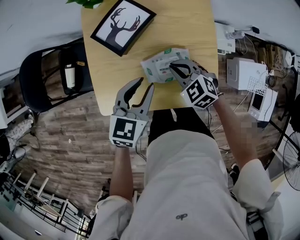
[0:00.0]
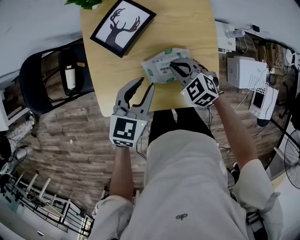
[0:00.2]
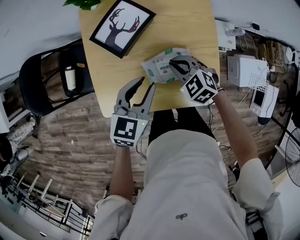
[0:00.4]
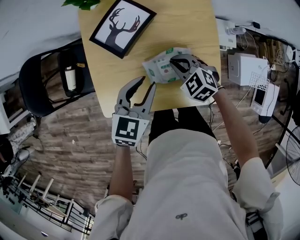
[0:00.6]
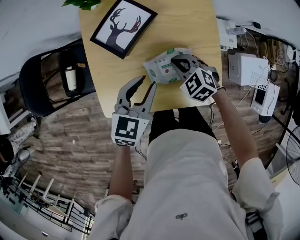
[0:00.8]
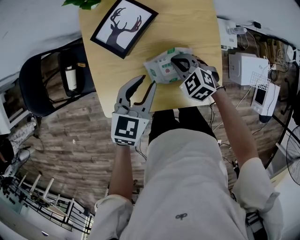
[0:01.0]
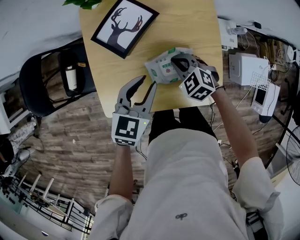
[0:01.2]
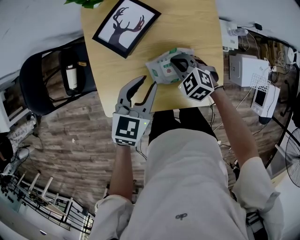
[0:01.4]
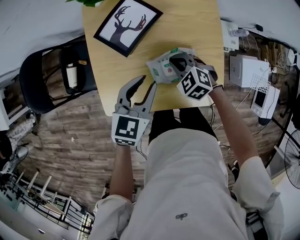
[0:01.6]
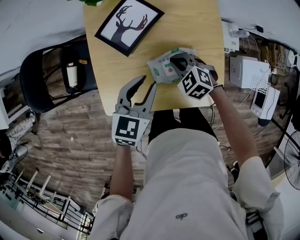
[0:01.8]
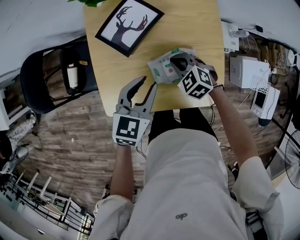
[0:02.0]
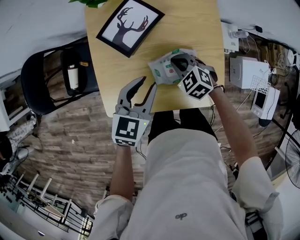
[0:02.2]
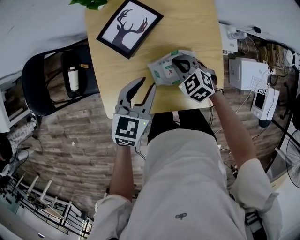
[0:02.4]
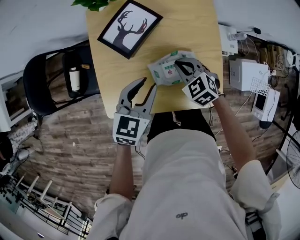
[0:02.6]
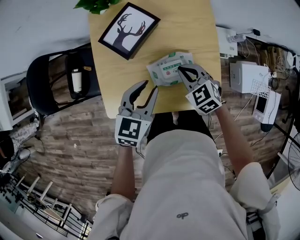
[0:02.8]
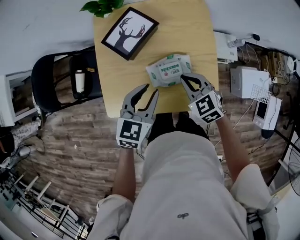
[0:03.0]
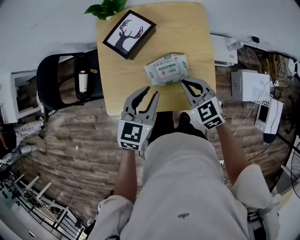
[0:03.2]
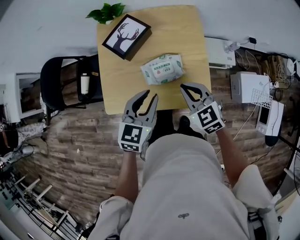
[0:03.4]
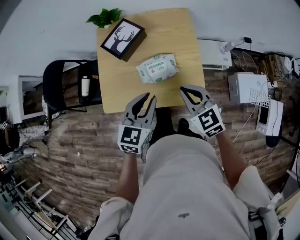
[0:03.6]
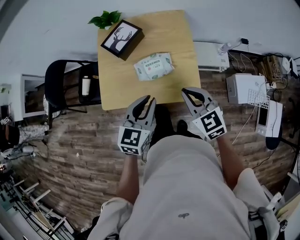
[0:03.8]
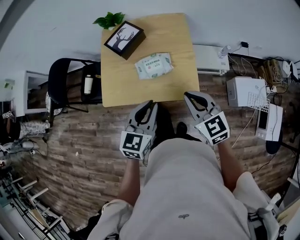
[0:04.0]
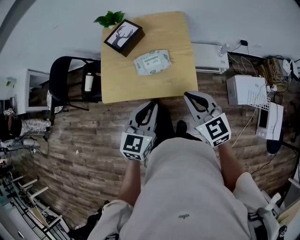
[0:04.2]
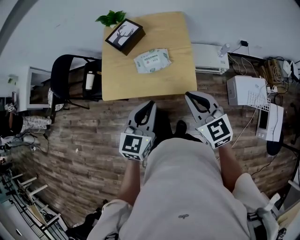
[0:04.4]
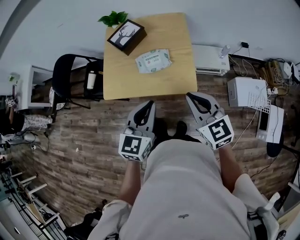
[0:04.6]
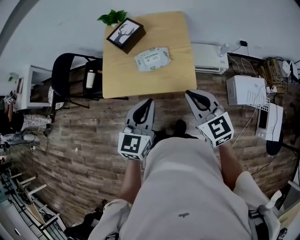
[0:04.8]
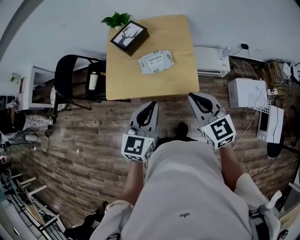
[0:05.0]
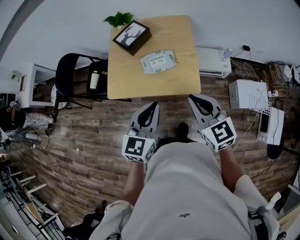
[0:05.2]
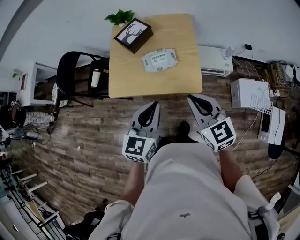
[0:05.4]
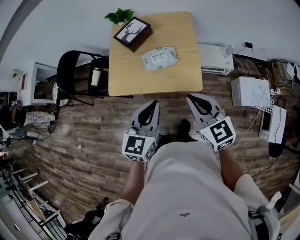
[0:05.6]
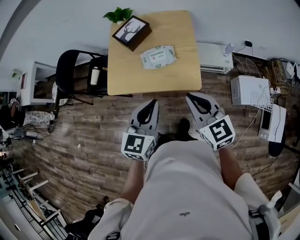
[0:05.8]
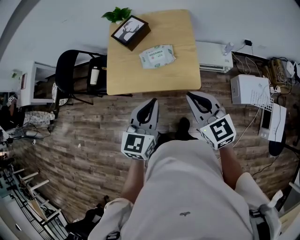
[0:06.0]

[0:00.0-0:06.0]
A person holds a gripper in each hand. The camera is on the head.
0:00.0 to 0:01.6: The right gripper shifts by roughly 5 cm.
0:01.6 to 0:03.0: The right gripper goes some 10 cm upward and backward, and turns by about 20 degrees; the left gripper ends up some 5 cm from where it was.
0:03.0 to 0:04.4: The right gripper moves backward, upward and to the right, some 30 cm, and turns by some 20 degrees. Meanwhile the left gripper travels backward, to the right and upward by some 30 cm, and closes up.
0:04.4 to 0:06.0: The grippers move only a little.

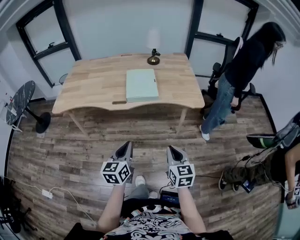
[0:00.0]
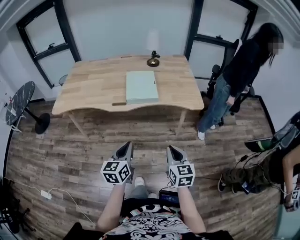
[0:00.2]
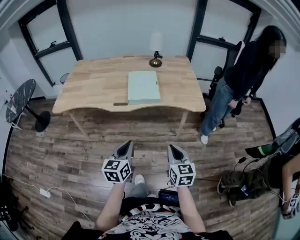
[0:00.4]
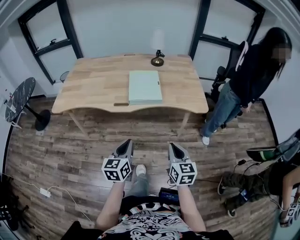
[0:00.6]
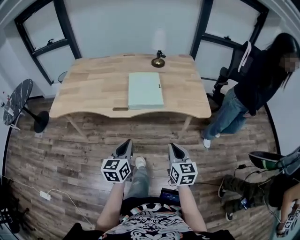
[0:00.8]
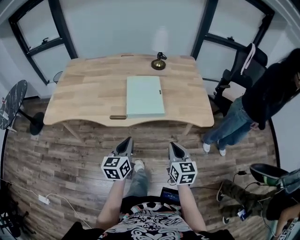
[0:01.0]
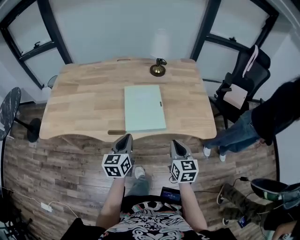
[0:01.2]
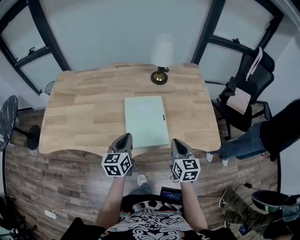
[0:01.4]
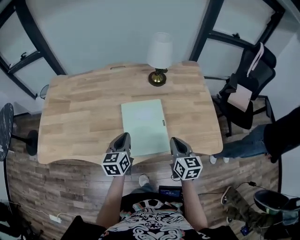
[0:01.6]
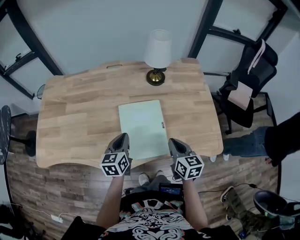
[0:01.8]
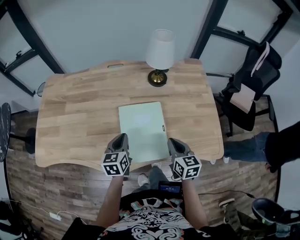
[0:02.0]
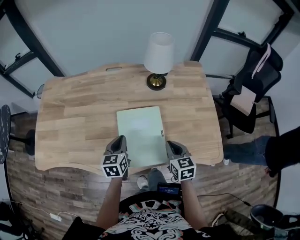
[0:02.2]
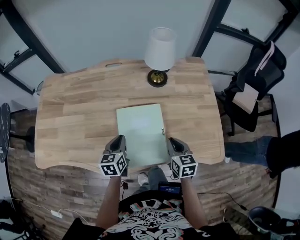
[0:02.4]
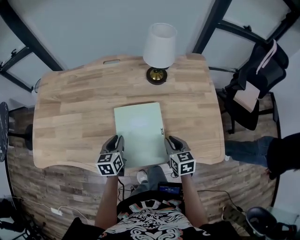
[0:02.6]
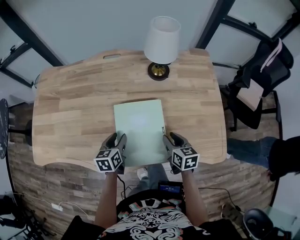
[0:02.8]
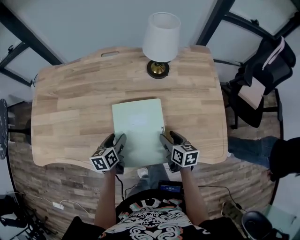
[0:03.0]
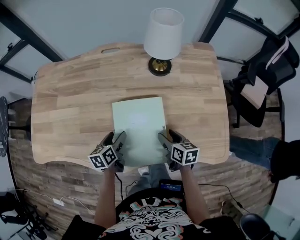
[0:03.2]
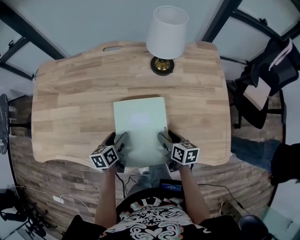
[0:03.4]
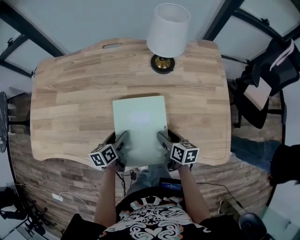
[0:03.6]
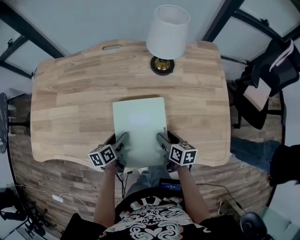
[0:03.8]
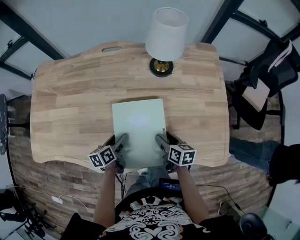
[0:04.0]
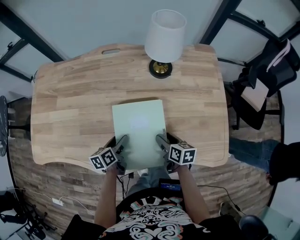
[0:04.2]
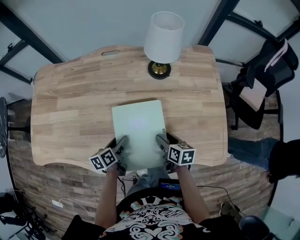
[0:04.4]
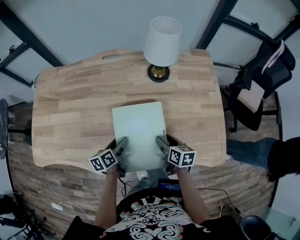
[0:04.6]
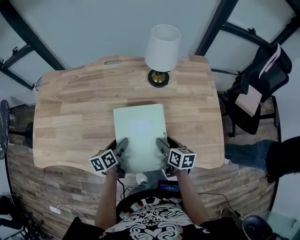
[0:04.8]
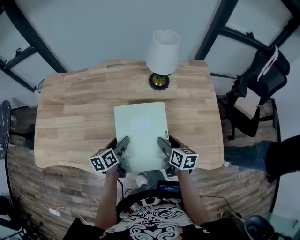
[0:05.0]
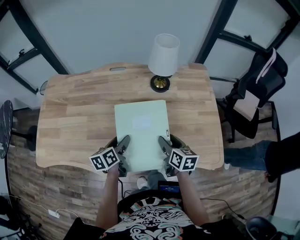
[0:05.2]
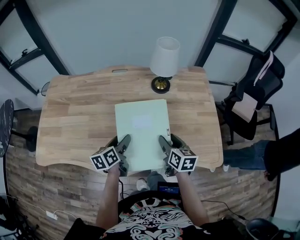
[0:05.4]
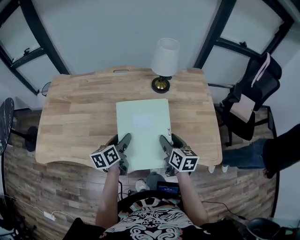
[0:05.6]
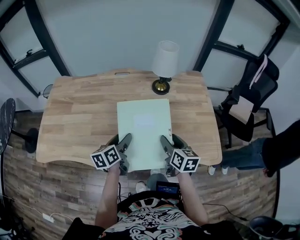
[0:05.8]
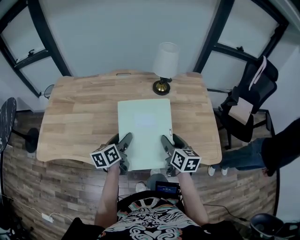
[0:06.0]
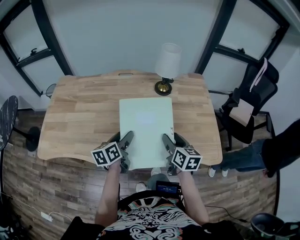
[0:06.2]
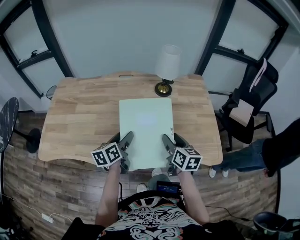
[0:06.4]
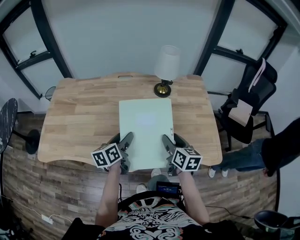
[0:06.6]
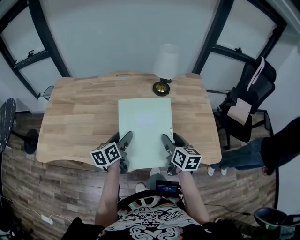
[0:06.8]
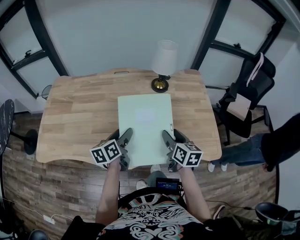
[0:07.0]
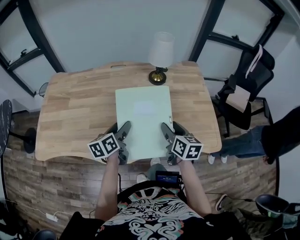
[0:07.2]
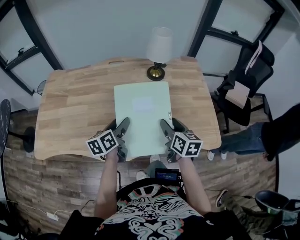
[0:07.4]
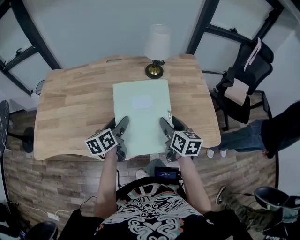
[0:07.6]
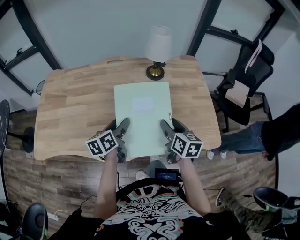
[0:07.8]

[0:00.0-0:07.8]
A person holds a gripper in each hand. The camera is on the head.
0:00.0 to 0:01.6: Both grippers are carried forward, approximately 50 cm.
0:01.6 to 0:03.2: The two grippers go some 15 cm downward and forward. The left gripper turns by approximately 20 degrees, and opens its fingers, while the right gripper rotates roughly 30 degrees, and opens its fingers.
0:03.2 to 0:04.6: The grippers move only a little.
0:04.6 to 0:06.2: Both grippers move upward, some 15 cm. The right gripper rotates about 20 degrees.
0:06.2 to 0:07.8: The grippers make only small movements.

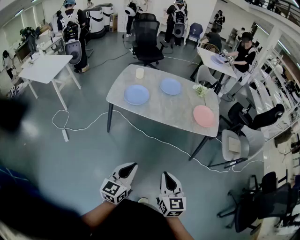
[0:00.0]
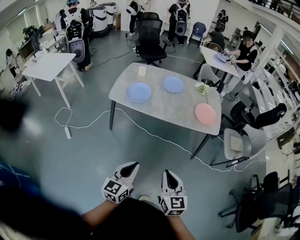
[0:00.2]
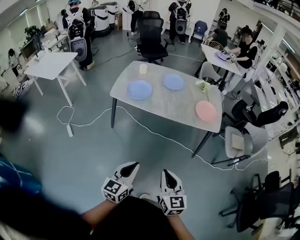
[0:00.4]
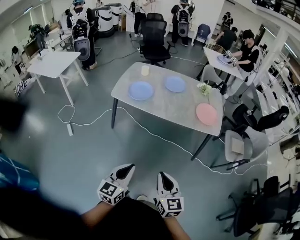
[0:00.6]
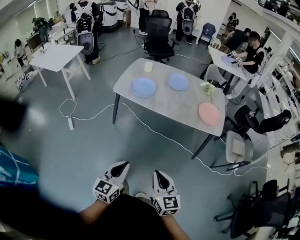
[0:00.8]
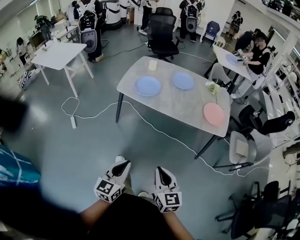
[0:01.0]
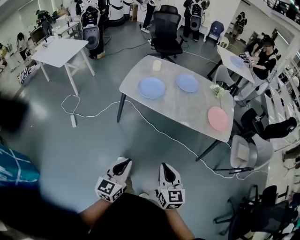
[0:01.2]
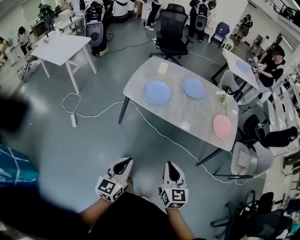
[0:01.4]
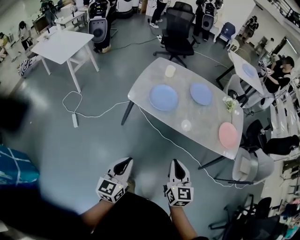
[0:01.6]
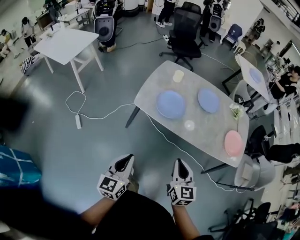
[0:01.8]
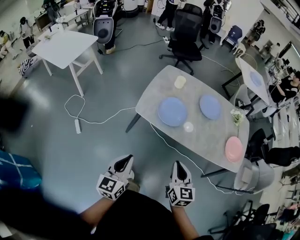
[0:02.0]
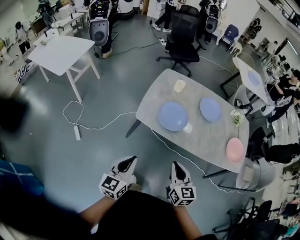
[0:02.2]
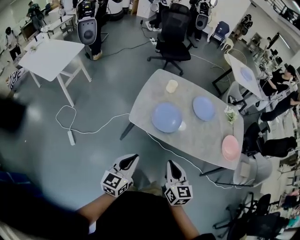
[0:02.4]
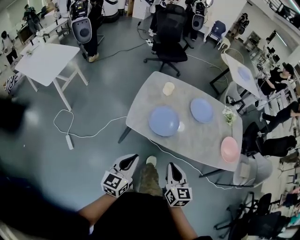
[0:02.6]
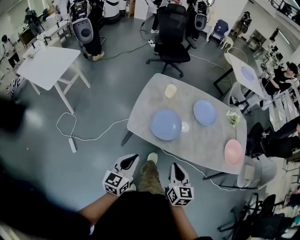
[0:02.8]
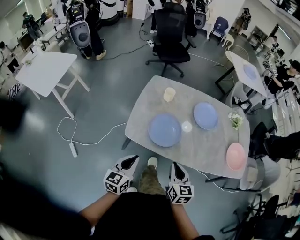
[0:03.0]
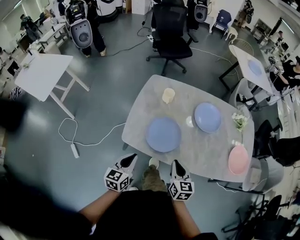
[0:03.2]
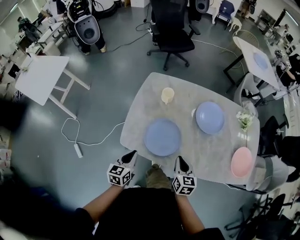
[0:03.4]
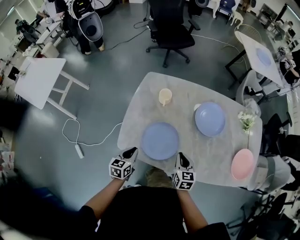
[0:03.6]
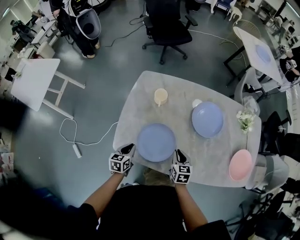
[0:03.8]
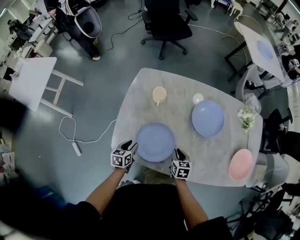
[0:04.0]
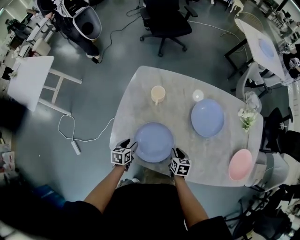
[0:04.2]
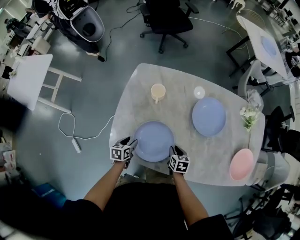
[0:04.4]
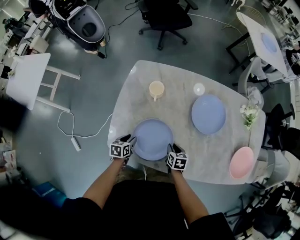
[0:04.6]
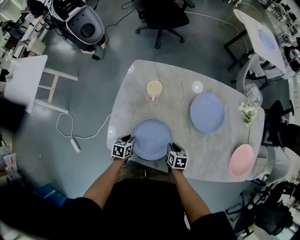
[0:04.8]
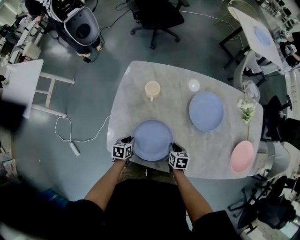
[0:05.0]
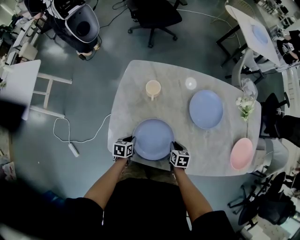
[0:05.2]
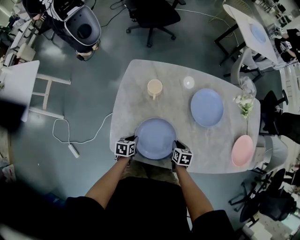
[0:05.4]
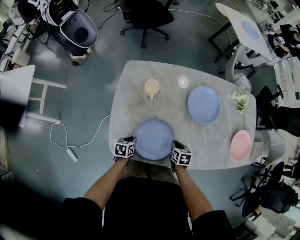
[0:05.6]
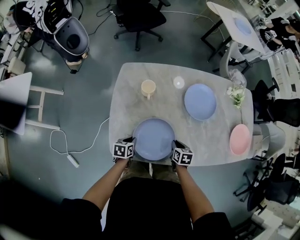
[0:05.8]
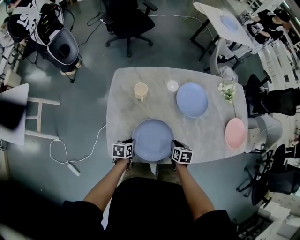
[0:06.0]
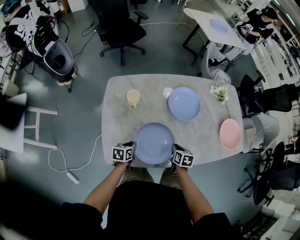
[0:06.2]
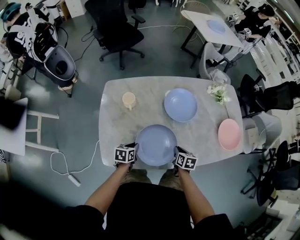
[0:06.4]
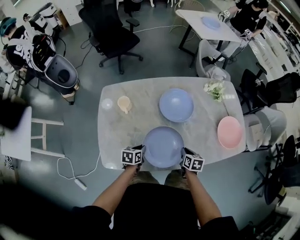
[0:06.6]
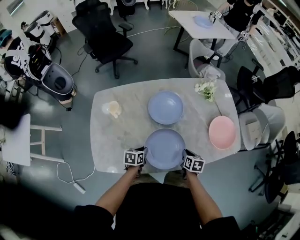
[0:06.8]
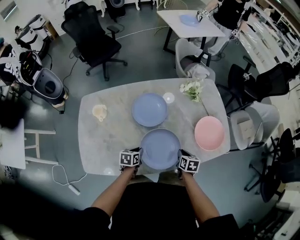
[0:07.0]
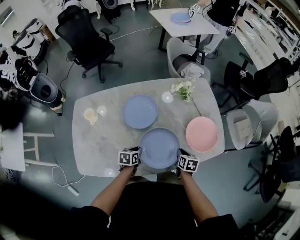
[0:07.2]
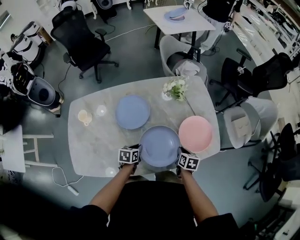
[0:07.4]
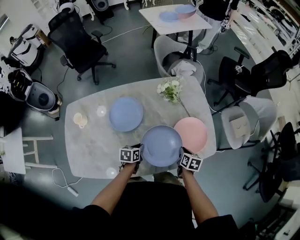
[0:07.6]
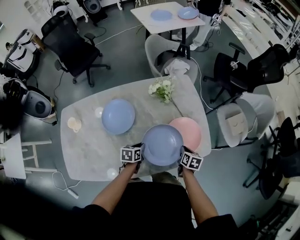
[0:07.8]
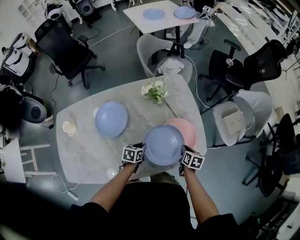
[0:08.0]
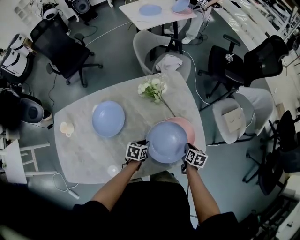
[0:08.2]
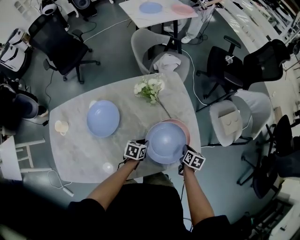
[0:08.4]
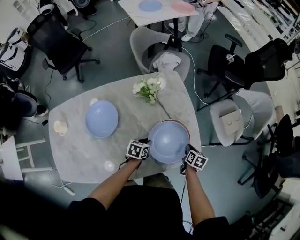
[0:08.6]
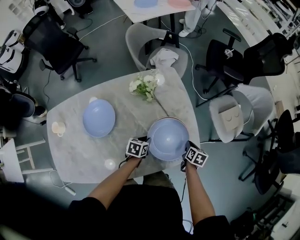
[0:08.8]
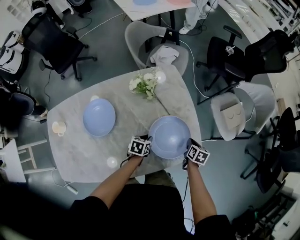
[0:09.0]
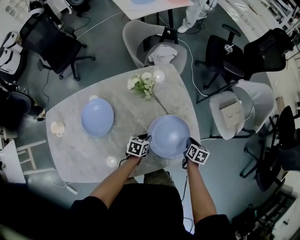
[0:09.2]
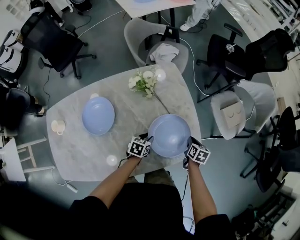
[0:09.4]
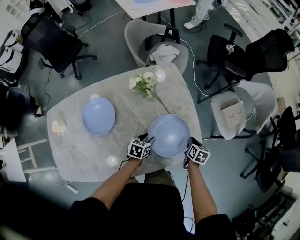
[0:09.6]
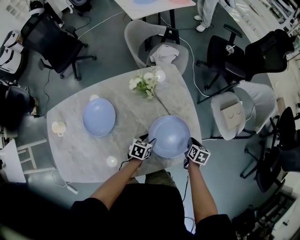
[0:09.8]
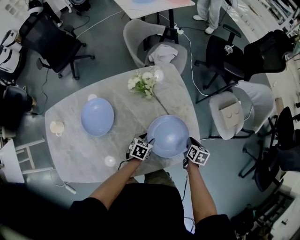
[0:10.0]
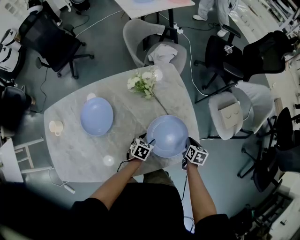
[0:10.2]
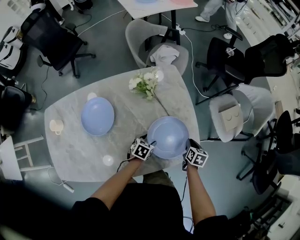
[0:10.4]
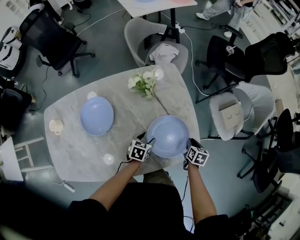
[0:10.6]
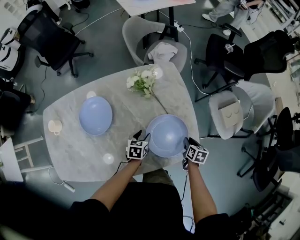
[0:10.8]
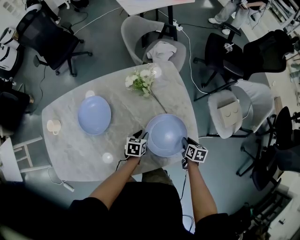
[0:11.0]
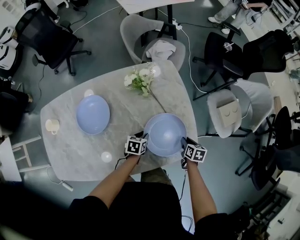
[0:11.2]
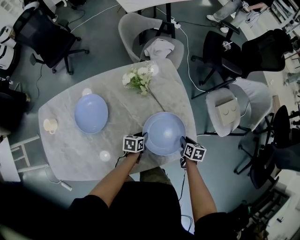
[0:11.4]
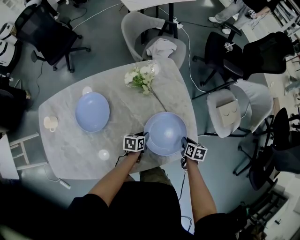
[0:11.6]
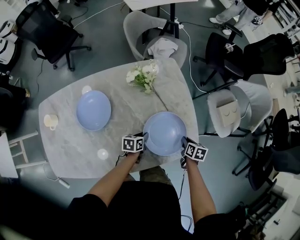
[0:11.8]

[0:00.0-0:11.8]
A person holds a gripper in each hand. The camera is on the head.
0:00.0 to 0:01.4: The left gripper travels to the left and forward by about 10 cm, while the right gripper heads forward and to the left, covering some 15 cm.
0:01.4 to 0:03.0: The two grippers go approximately 35 cm forward.
0:03.0 to 0:04.4: Both grippers travel together downward and forward, roughly 35 cm. The left gripper tilts its fingers roughly 40 degrees downward, and opens its fingers; the right gripper tips its fingers downward by roughly 30 degrees.
0:04.4 to 0:06.0: The left gripper closes its fingers. Meanwhile the right gripper changes place by about 5 cm.
0:06.0 to 0:07.4: Both grippers are carried to the right, roughly 40 cm.
0:07.4 to 0:08.8: Both grippers move to the right and forward, roughly 25 cm.
0:08.8 to 0:10.4: The left gripper opens its fingers.
0:10.4 to 0:11.8: The left gripper rotates some 30 degrees, and closes its fingers.
